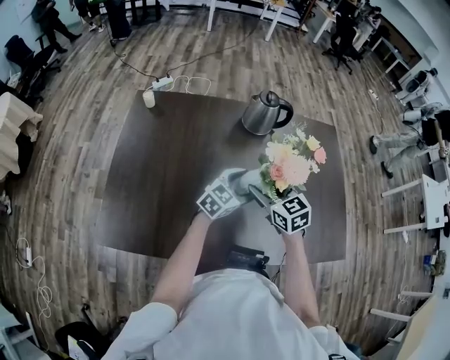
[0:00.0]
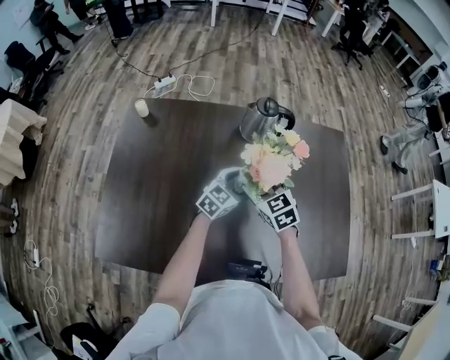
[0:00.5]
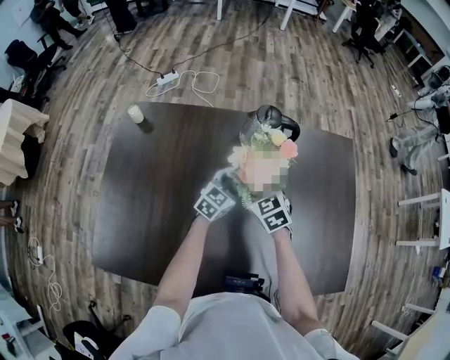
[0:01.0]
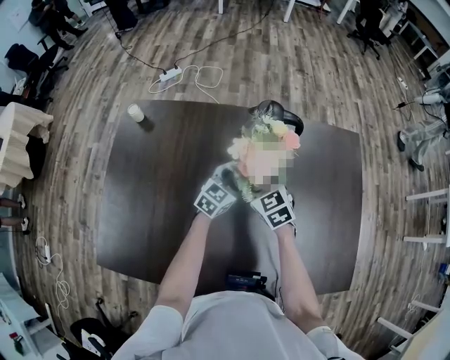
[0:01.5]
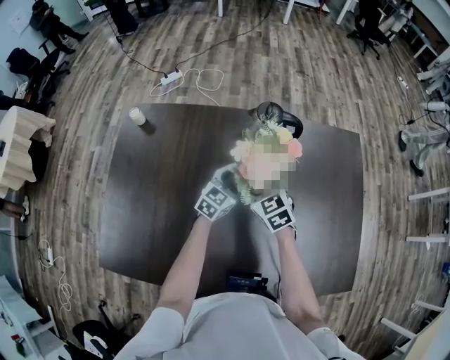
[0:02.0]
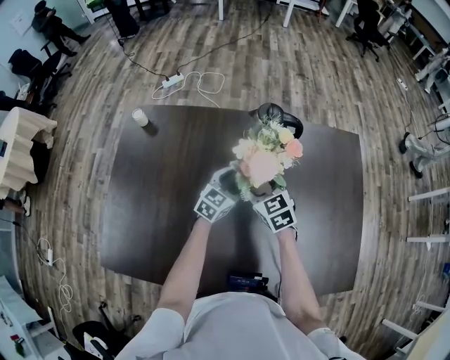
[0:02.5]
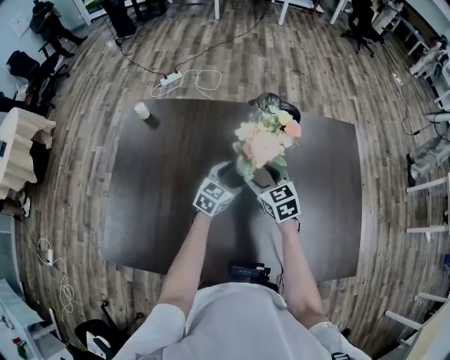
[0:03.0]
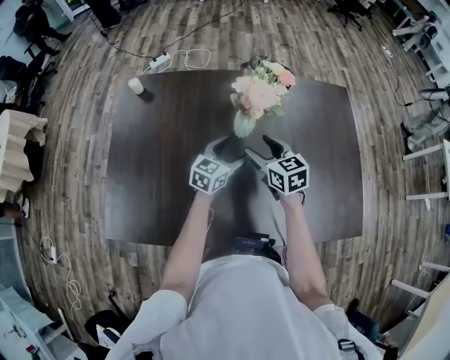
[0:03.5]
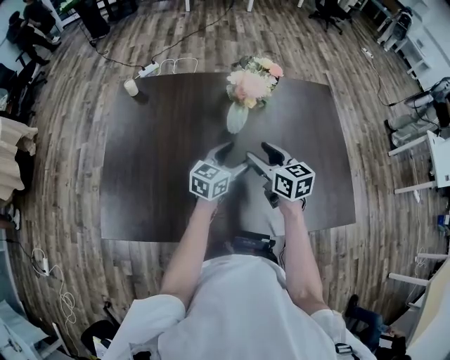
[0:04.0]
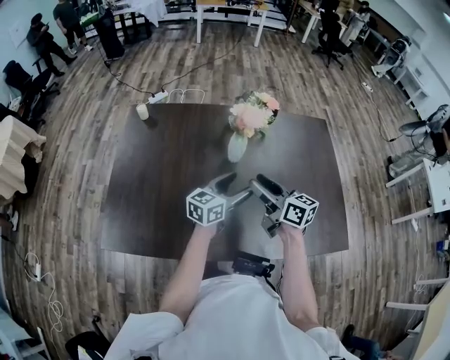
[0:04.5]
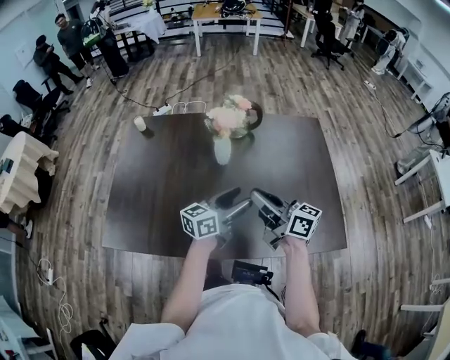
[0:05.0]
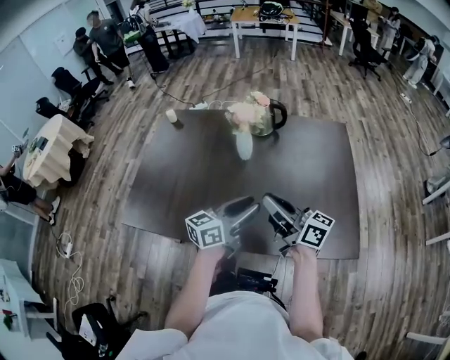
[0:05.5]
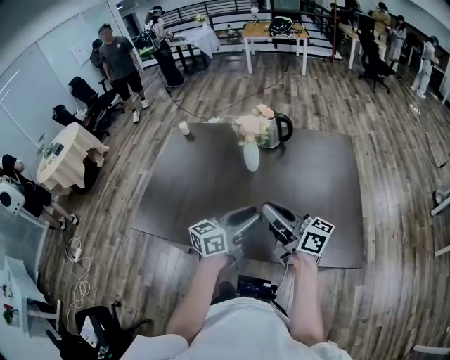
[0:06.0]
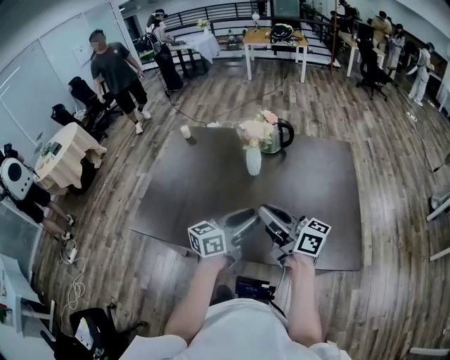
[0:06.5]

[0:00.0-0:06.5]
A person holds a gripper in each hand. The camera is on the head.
0:00.0 to 0:02.0: The grippers both shift forward and downward by about 15 cm.
0:02.0 to 0:04.5: The two grippers go roughly 20 cm backward and upward. The right gripper twists some 40 degrees clockwise, seen from behind; the left gripper swivels roughly 30 degrees.
0:04.5 to 0:06.5: Both grippers move backward and upward, roughly 20 cm. The right gripper swivels about 30 degrees, and closes. The left gripper closes its fingers.

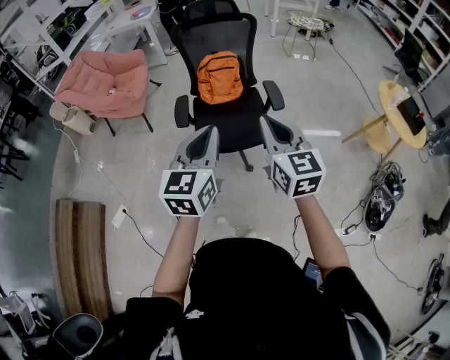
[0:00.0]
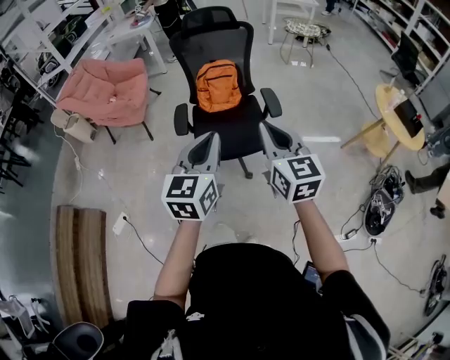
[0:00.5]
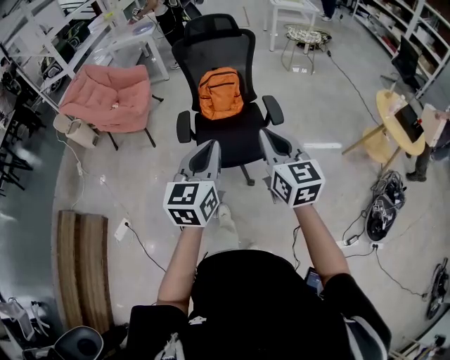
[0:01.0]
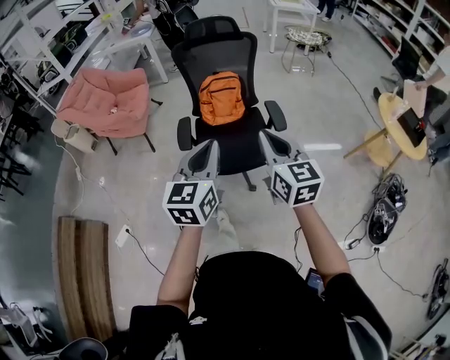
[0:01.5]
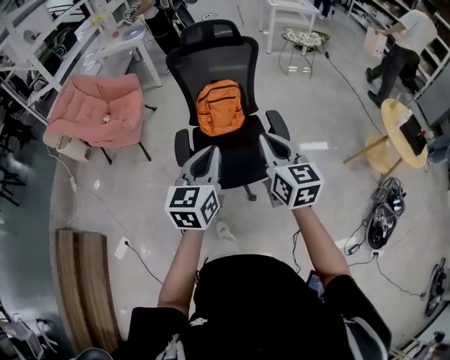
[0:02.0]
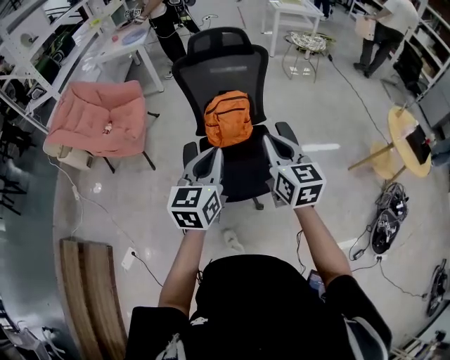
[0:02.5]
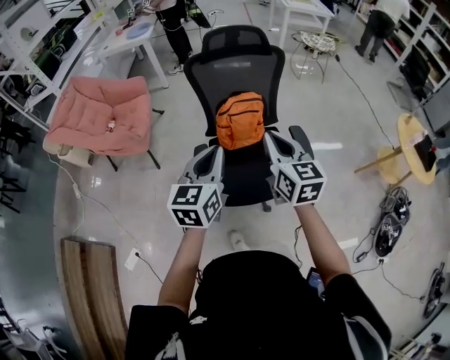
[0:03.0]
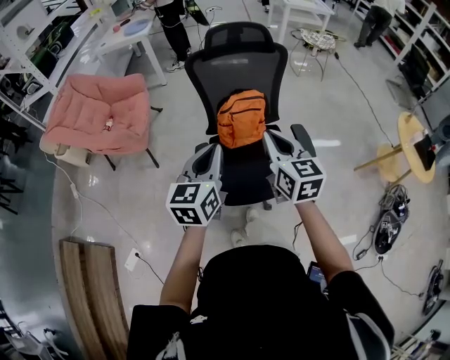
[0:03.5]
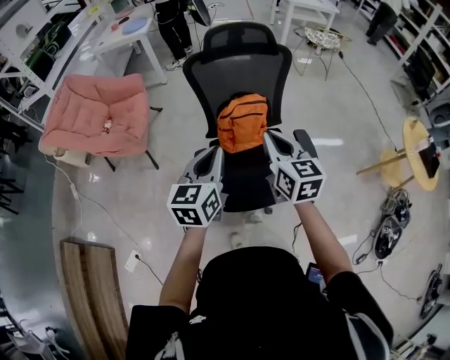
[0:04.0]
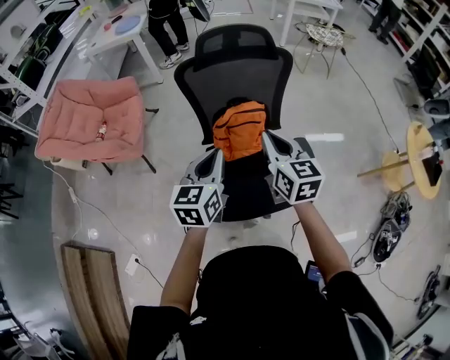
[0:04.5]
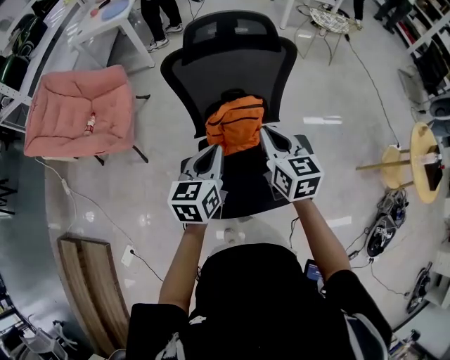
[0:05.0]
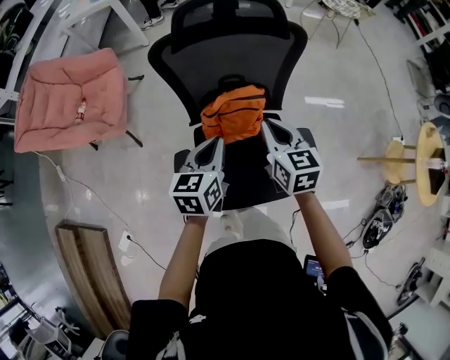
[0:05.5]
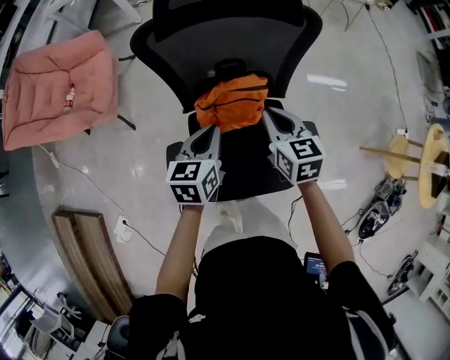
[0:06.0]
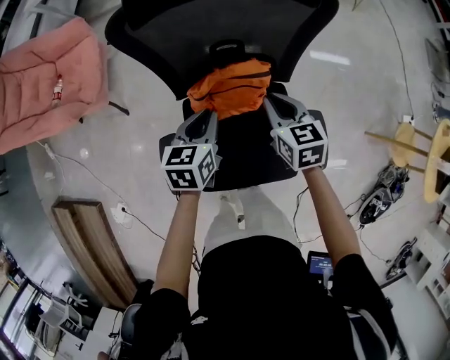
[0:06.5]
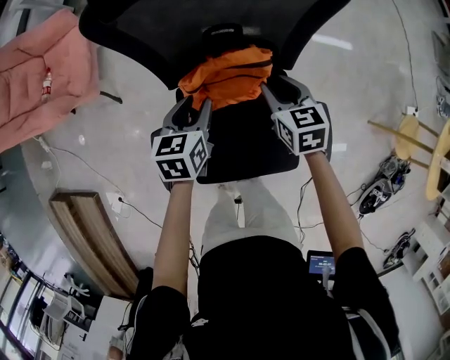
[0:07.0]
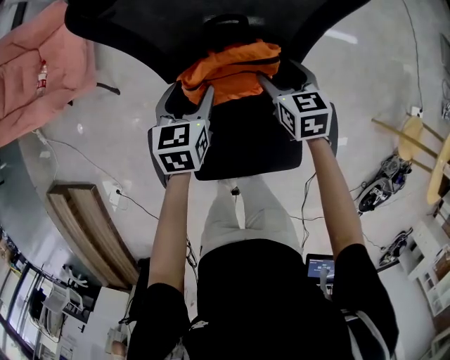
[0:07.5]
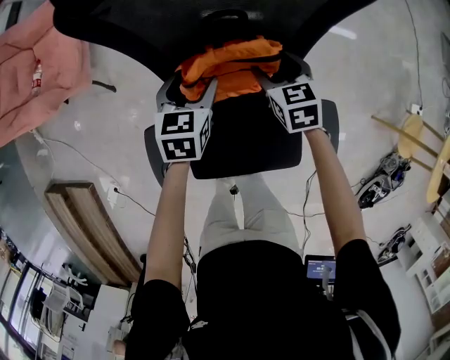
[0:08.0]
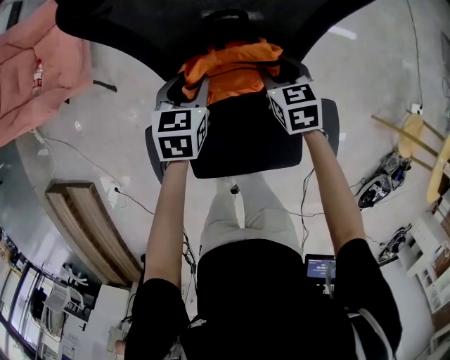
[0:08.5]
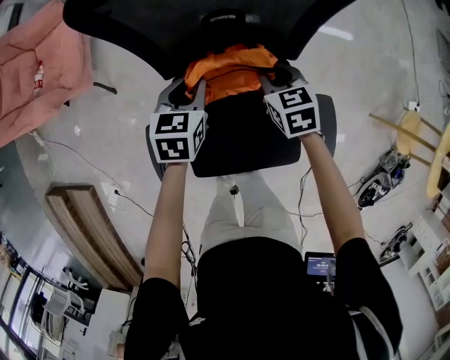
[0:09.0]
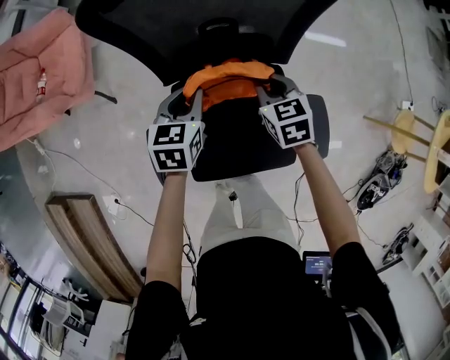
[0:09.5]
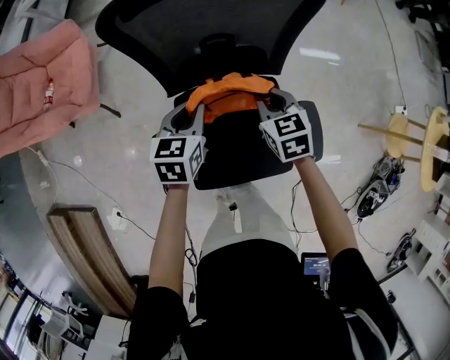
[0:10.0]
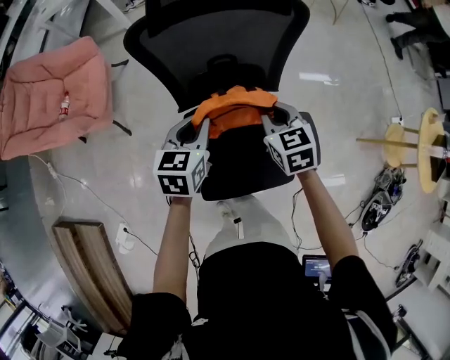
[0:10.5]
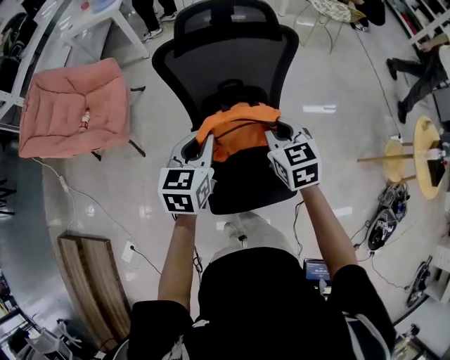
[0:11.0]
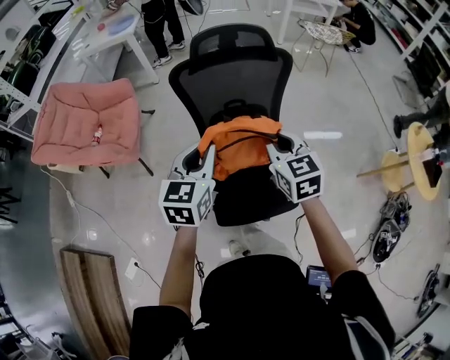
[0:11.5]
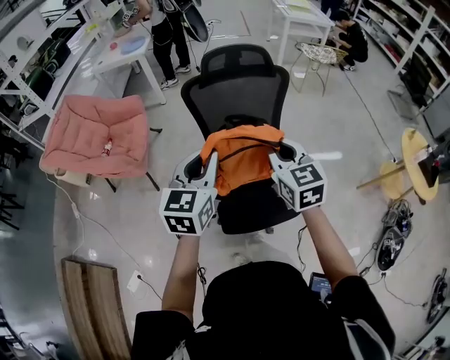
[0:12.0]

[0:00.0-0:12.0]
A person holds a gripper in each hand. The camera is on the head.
0:00.0 to 0:02.0: Both grippers travel together forward, approximately 15 cm.
0:02.0 to 0:04.0: Both grippers move forward and to the left, roughly 25 cm.
0:04.0 to 0:06.0: Both grippers travel together forward and downward, approximately 35 cm. The left gripper changes its angle by roughly 20 degrees, while the right gripper swivels some 20 degrees.
0:06.0 to 0:08.0: The grippers both shift downward and forward by about 20 cm. The right gripper opens its fingers, while the left gripper opens.
0:08.0 to 0:10.0: Both grippers move upward and backward, roughly 15 cm. The right gripper closes up. The left gripper closes its fingers.
0:10.0 to 0:12.0: The two grippers go approximately 40 cm upward and backward. The right gripper changes its angle by approximately 30 degrees; the left gripper rotates about 30 degrees.

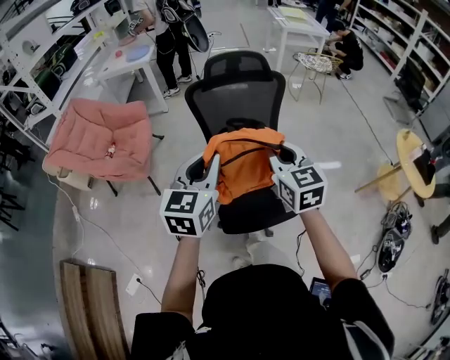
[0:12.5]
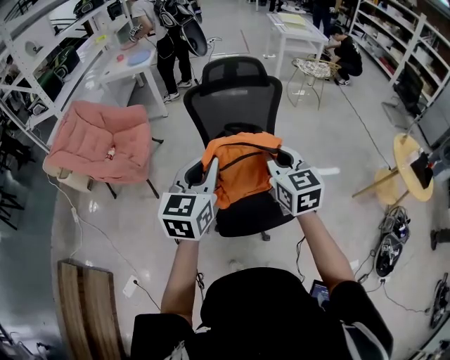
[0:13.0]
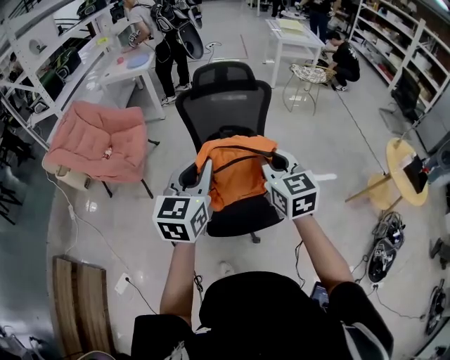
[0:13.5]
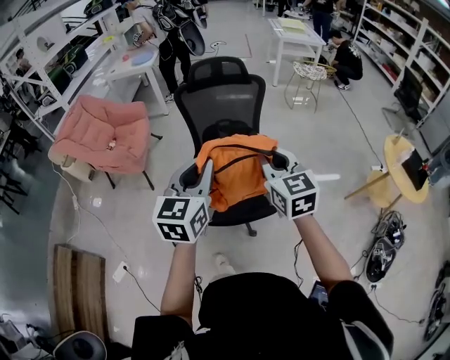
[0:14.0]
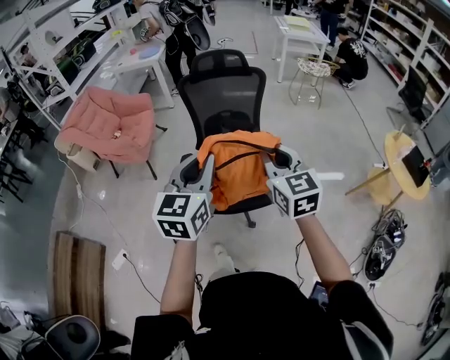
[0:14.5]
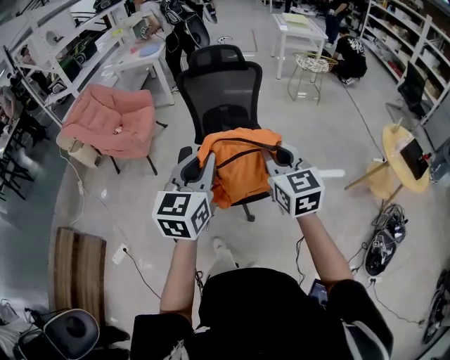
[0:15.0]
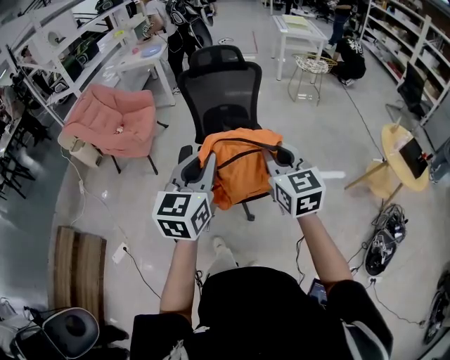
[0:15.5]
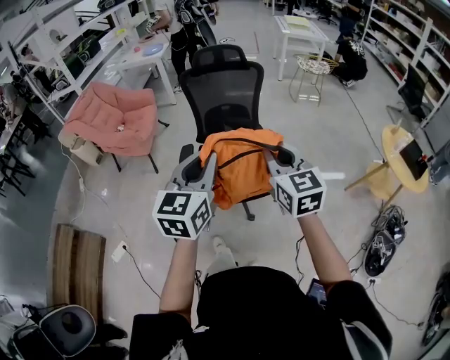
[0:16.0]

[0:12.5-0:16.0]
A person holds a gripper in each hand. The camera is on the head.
0:12.5 to 0:14.5: Both grippers move backward and to the right, roughly 25 cm.
0:14.5 to 0:16.0: The grippers both shift backward by roughly 10 cm.

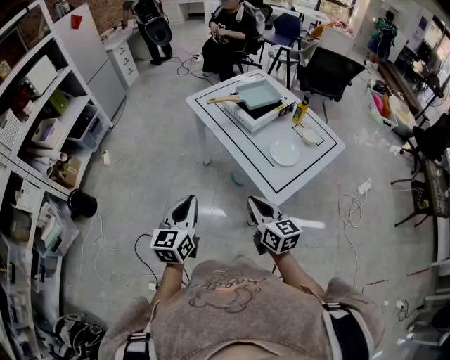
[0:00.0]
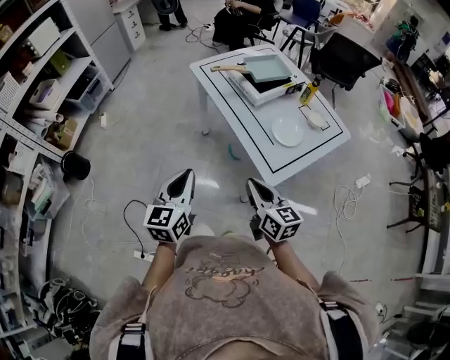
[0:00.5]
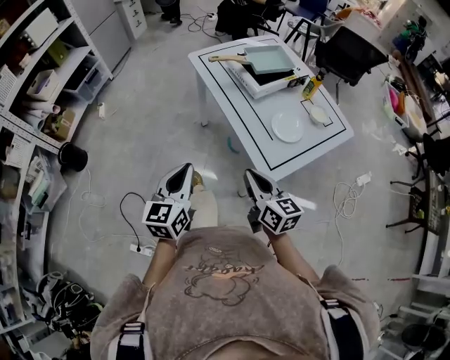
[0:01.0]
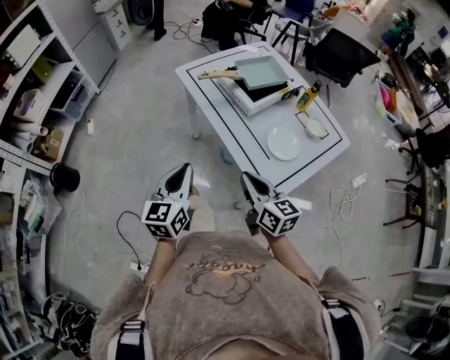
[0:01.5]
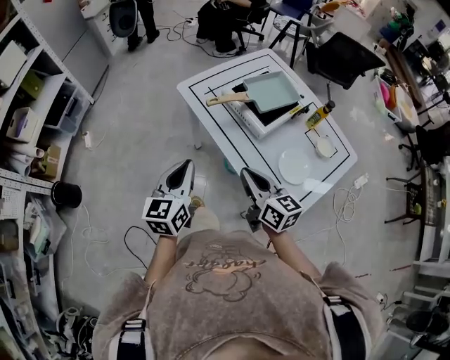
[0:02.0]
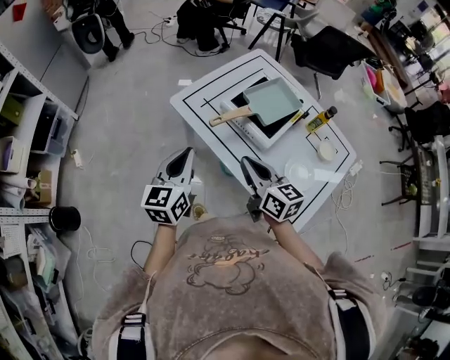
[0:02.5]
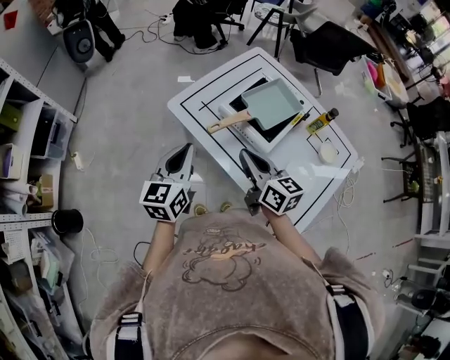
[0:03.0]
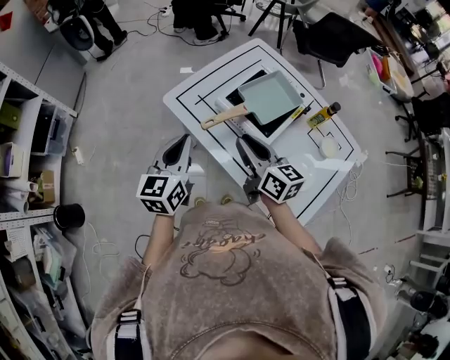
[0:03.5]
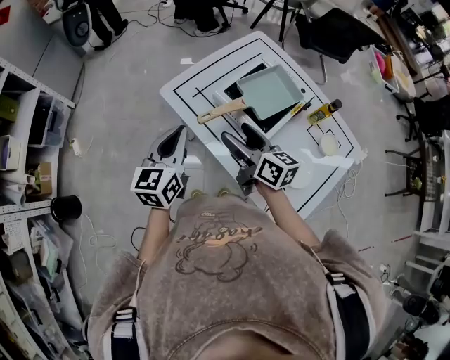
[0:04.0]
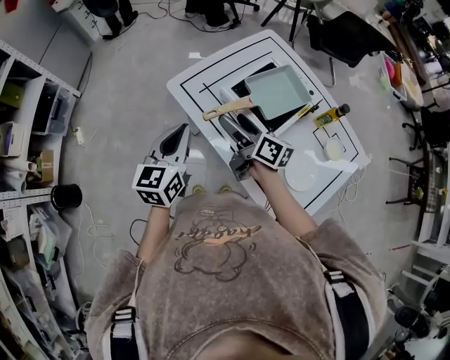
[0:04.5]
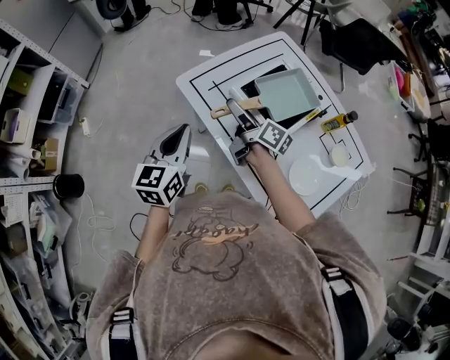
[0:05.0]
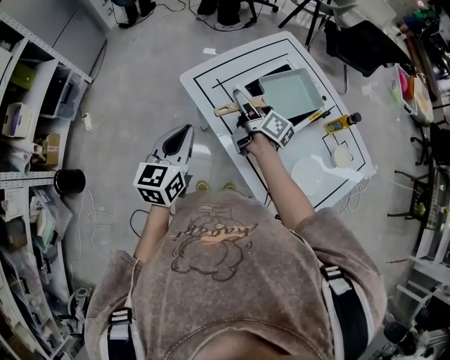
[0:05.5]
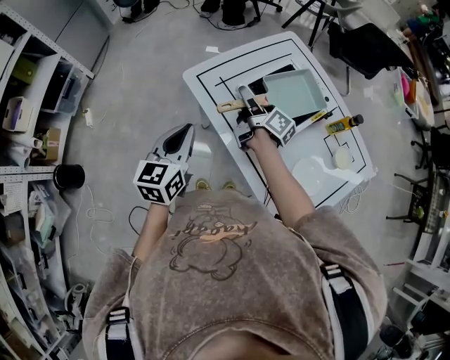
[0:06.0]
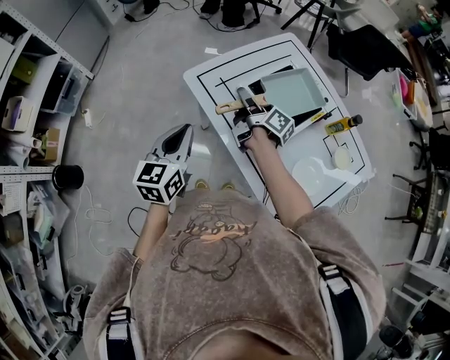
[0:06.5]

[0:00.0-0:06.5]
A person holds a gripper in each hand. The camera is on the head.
0:00.0 to 0:02.0: Both grippers move forward, some 25 cm.
0:02.0 to 0:04.5: The two grippers go approximately 20 cm forward. The right gripper changes its angle by about 30 degrees, and opens.
0:04.5 to 0:06.5: The right gripper is displaced forward by some 10 cm, rotates roughly 20 degrees, and closes up.
